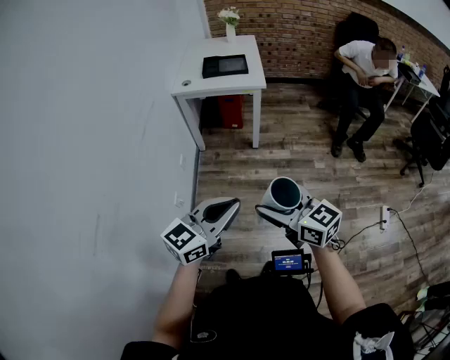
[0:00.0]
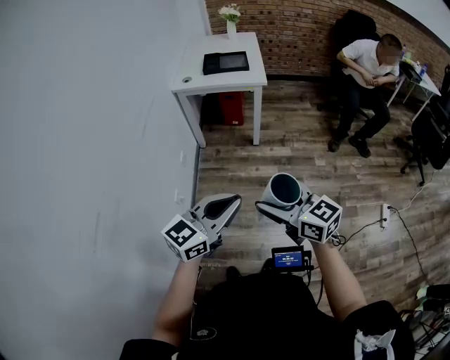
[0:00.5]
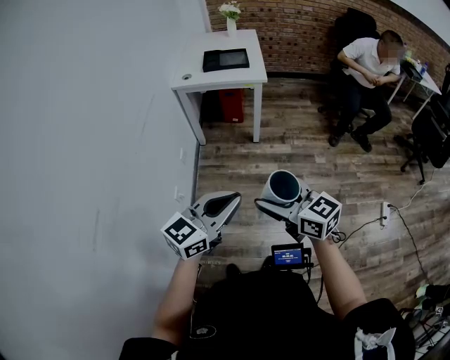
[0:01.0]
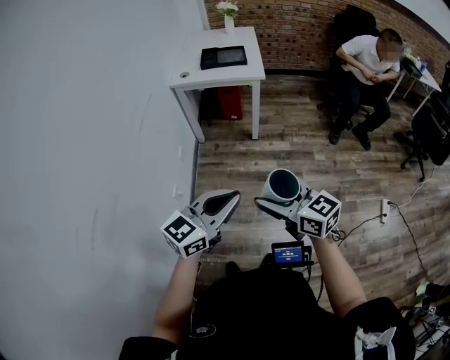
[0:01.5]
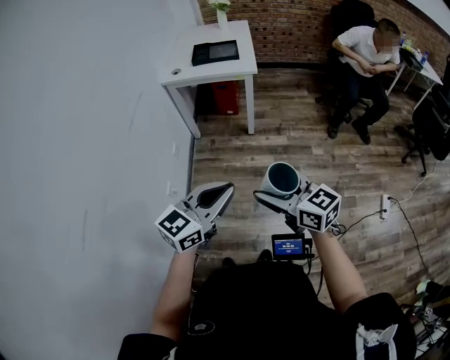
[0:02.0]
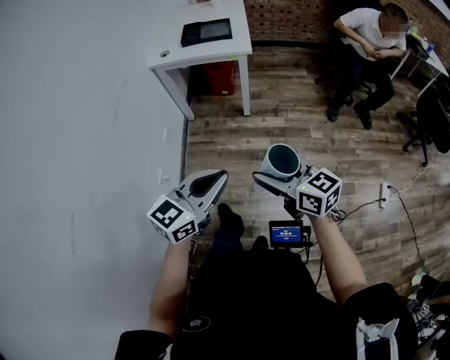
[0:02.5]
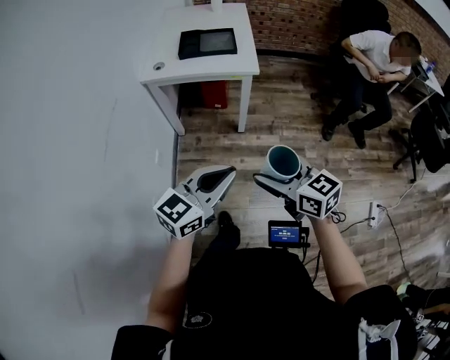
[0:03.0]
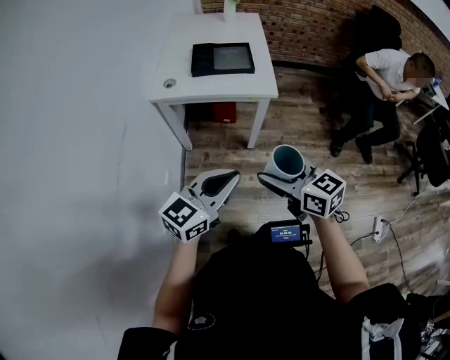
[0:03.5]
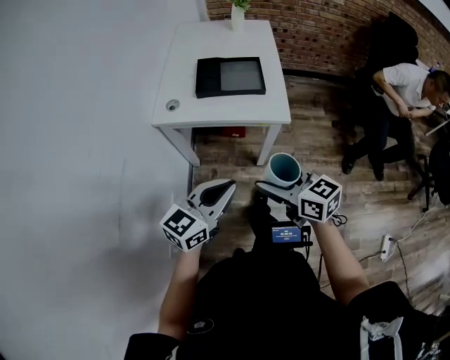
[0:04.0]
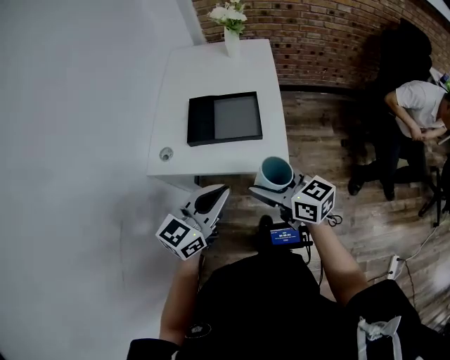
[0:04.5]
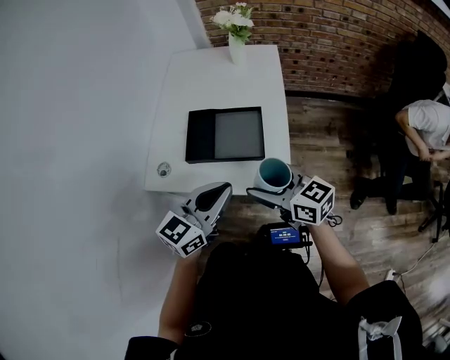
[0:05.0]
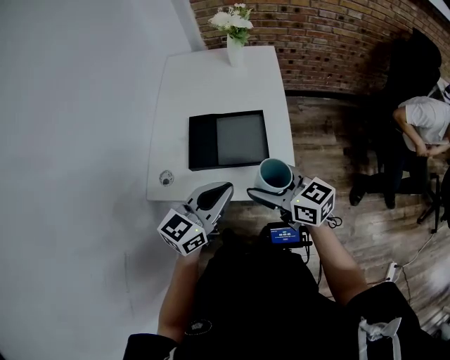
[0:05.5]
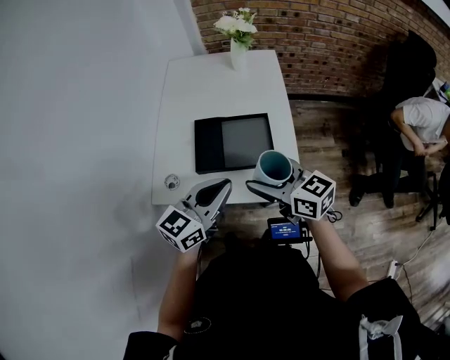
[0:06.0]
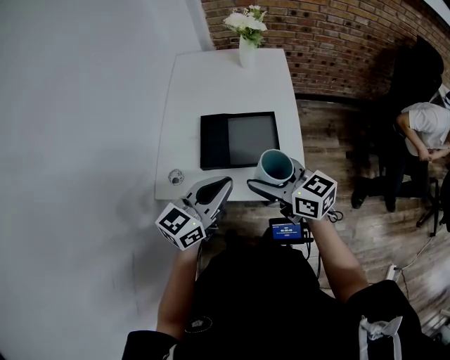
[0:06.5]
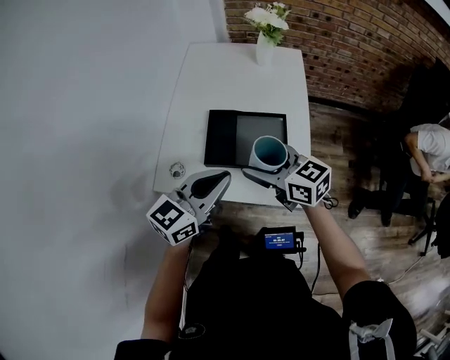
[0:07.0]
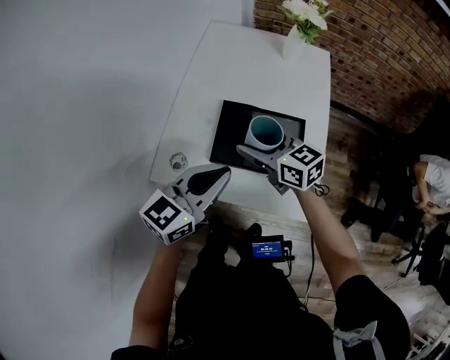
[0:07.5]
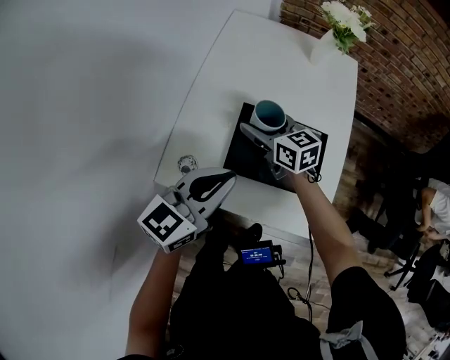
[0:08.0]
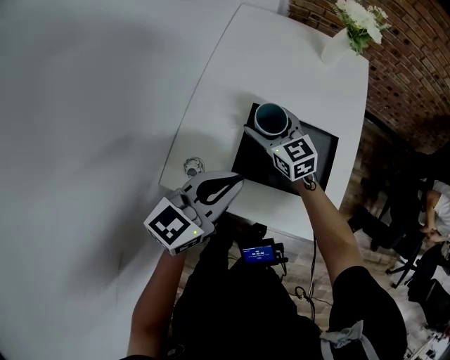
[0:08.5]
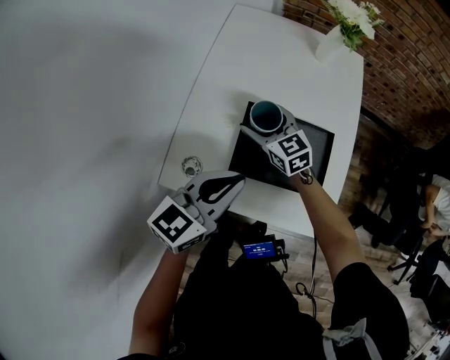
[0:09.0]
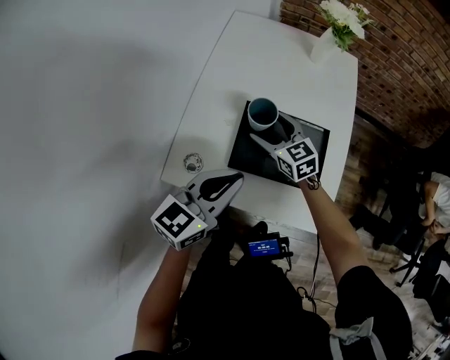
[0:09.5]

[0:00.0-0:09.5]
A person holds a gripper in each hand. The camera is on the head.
0:00.0 to 0:02.0: The right gripper shifts by approximately 5 cm.
0:02.0 to 0:04.0: The pair of grippers is taken forward, roughly 50 cm.
0:04.0 to 0:05.5: The grippers both shift forward by approximately 30 cm.
0:05.5 to 0:07.5: The right gripper heads forward and to the left, covering approximately 20 cm. The left gripper is displaced to the left and forward by roughly 10 cm.
0:07.5 to 0:09.5: The left gripper shifts by approximately 5 cm, while the right gripper moves downward and forward, roughly 15 cm.

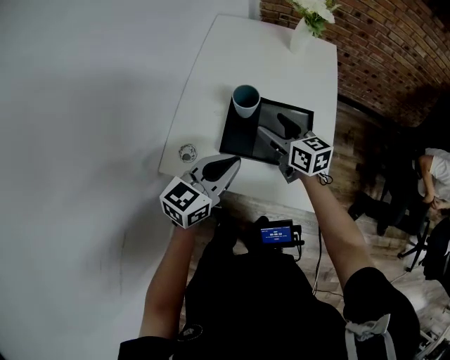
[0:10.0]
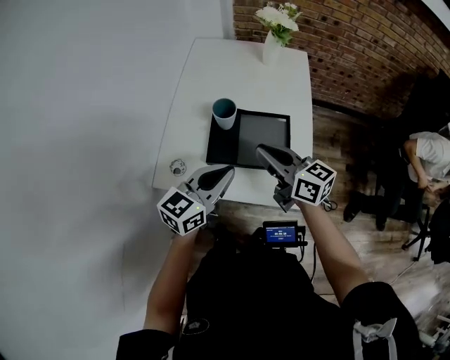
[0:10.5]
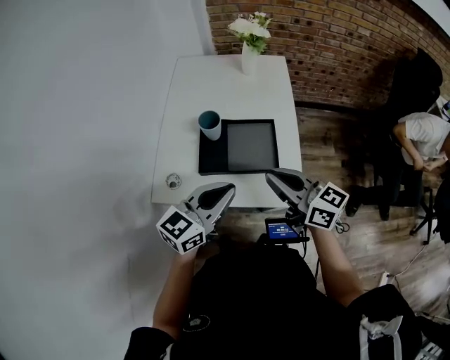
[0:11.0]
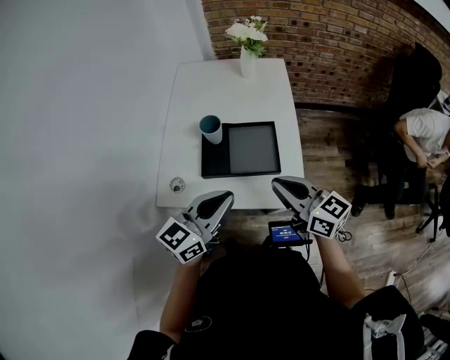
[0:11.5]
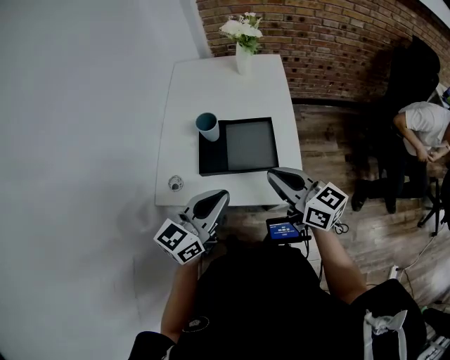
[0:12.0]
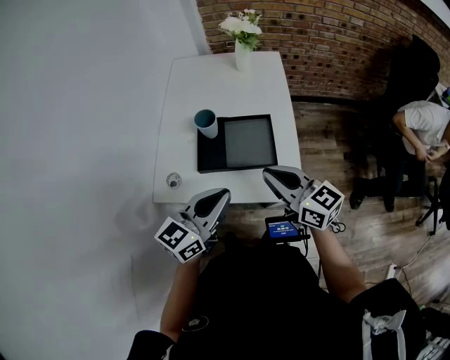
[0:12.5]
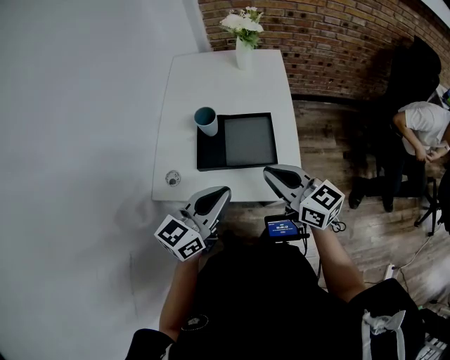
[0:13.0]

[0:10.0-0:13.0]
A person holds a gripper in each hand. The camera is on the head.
0:10.0 to 0:11.5: The right gripper goes some 25 cm backward, upward and to the right, and closes. Meanwhile the left gripper heads backward, upward and to the right, covering roughly 10 cm.
0:11.5 to 0:13.0: The grippers make only small movements.

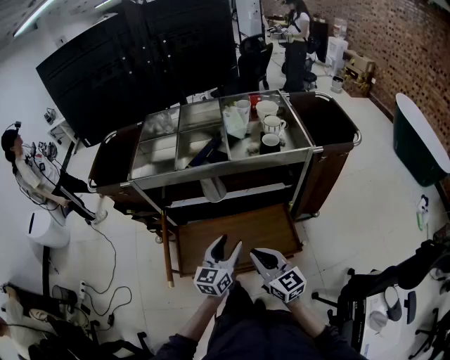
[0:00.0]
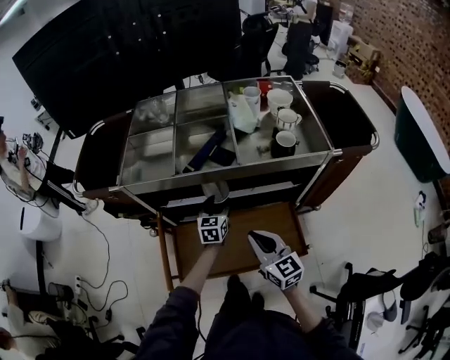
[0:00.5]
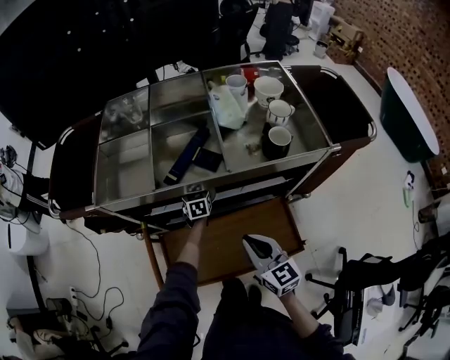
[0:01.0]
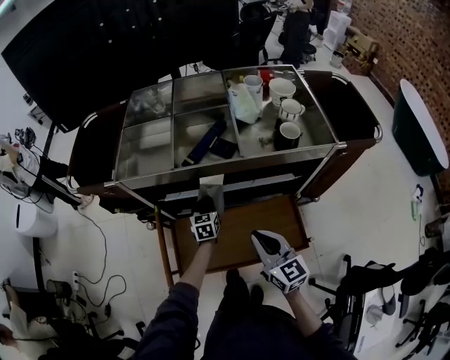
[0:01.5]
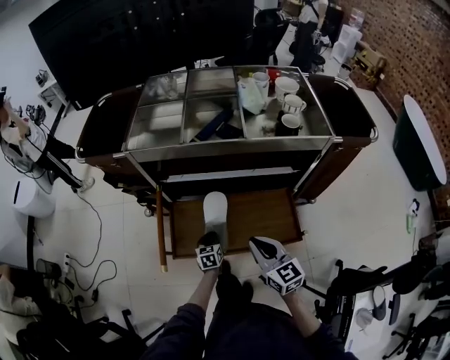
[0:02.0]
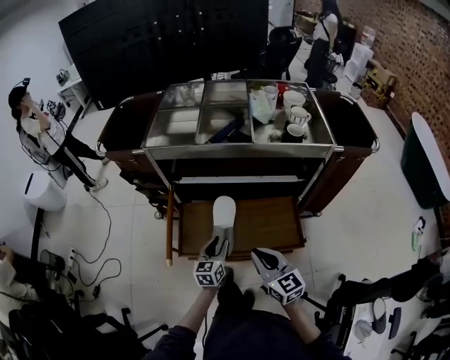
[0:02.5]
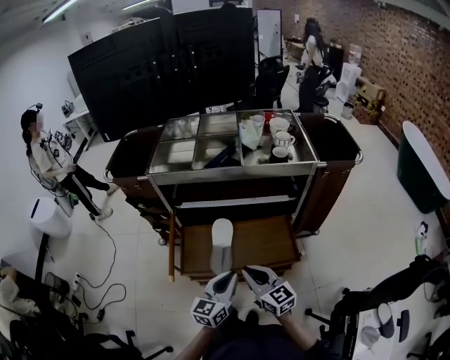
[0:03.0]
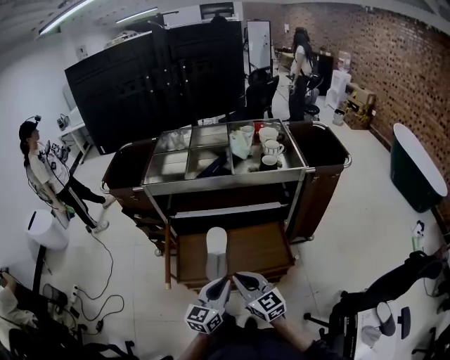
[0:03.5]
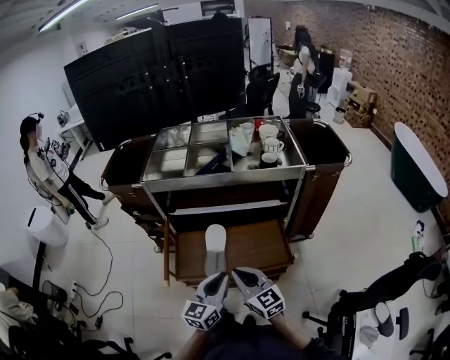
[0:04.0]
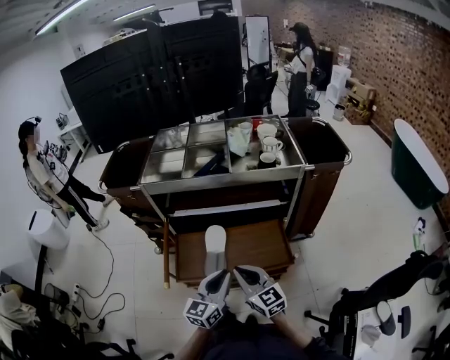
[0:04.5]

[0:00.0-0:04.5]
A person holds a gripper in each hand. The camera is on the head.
0:00.0 to 0:02.0: The right gripper travels forward and back again, about 15 cm each way. The left gripper goes about 25 cm downward, goes forward and returns, some 40 cm each way, tips its fingers downward by some 30 degrees, and closes its fingers.
0:02.0 to 0:04.5: The left gripper heads upward and backward, covering about 35 cm, tips its fingers upward by about 40 degrees, and opens, then closes once more. The right gripper goes some 10 cm backward and upward.

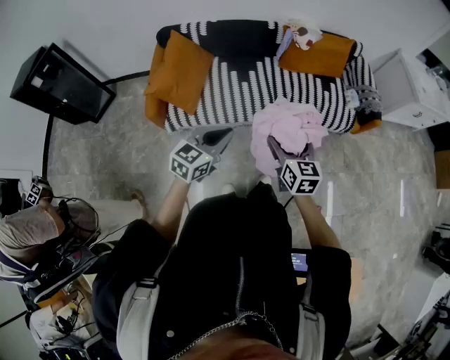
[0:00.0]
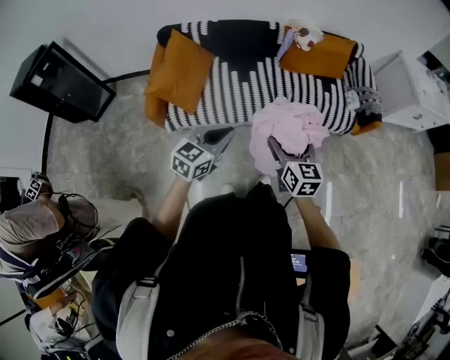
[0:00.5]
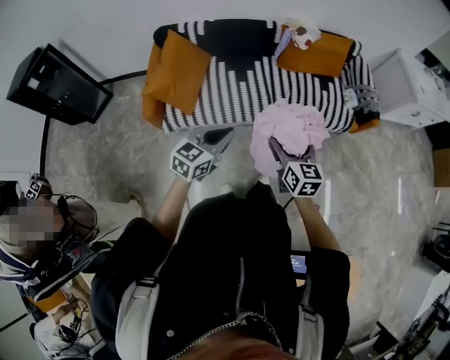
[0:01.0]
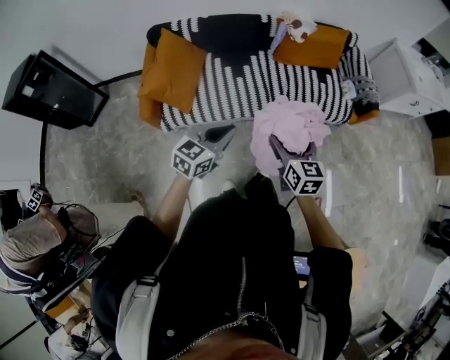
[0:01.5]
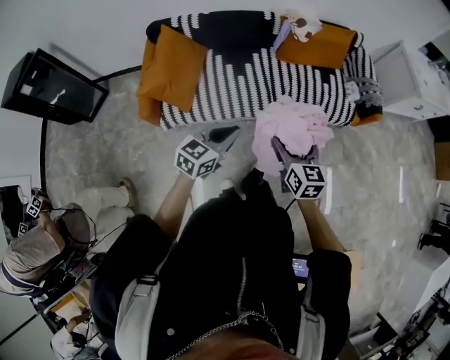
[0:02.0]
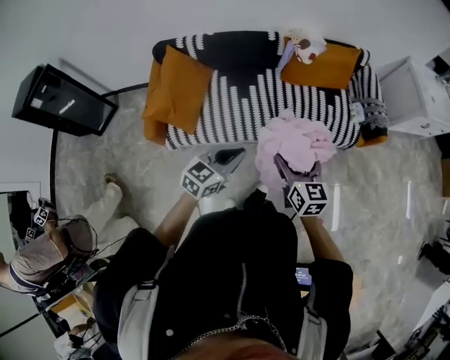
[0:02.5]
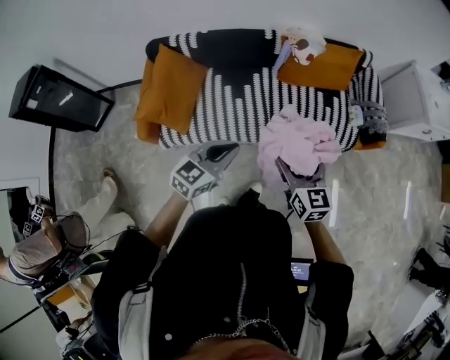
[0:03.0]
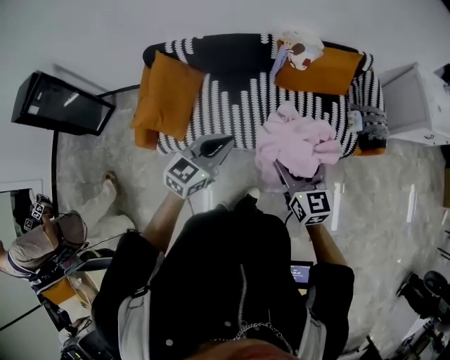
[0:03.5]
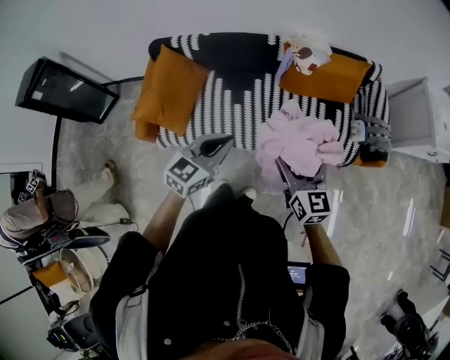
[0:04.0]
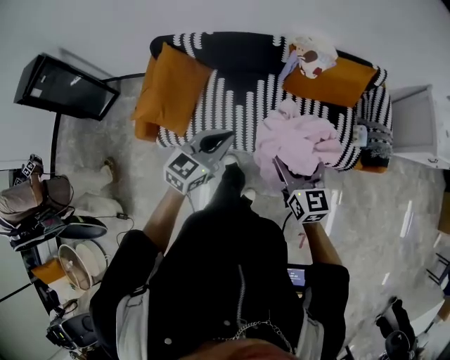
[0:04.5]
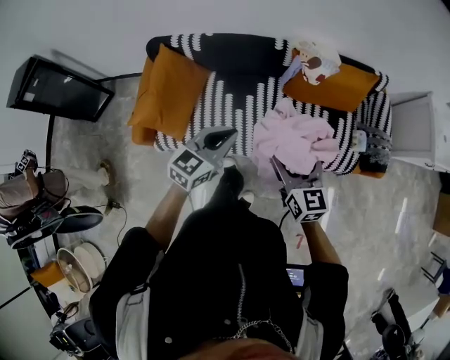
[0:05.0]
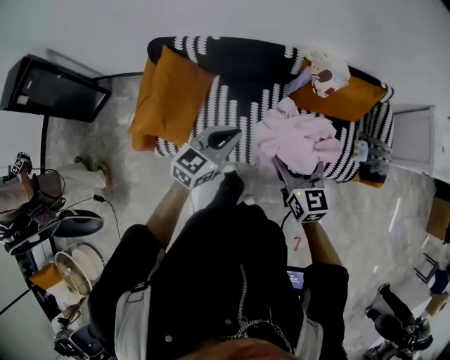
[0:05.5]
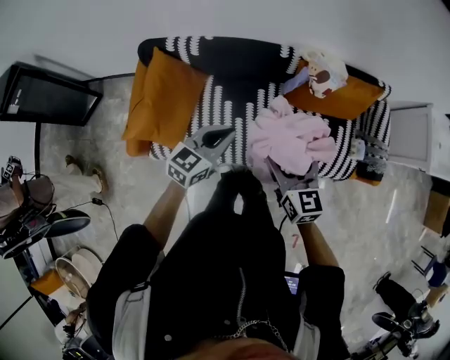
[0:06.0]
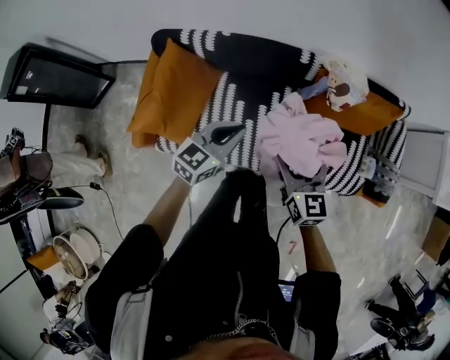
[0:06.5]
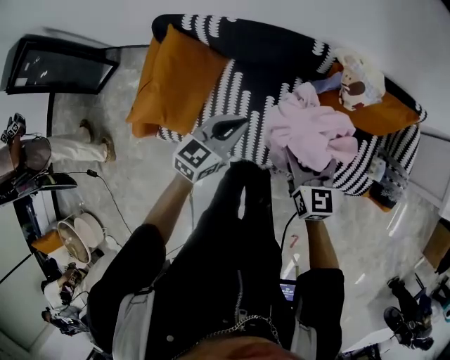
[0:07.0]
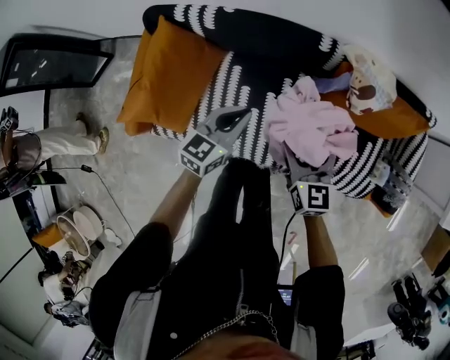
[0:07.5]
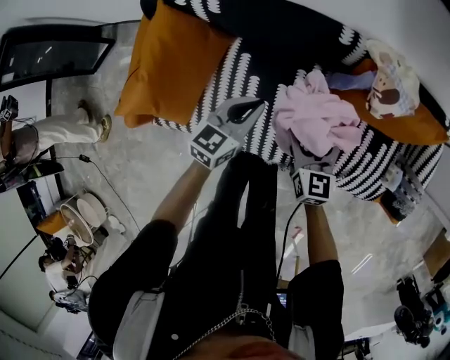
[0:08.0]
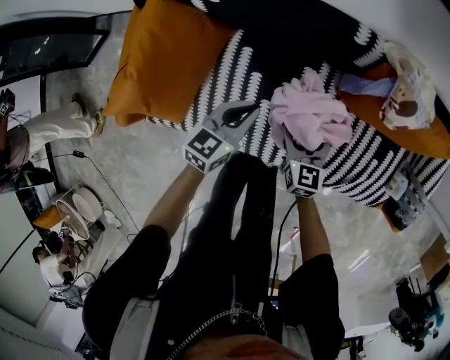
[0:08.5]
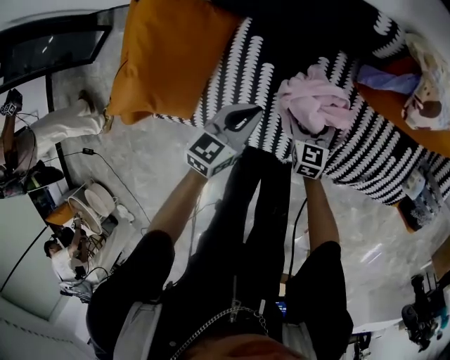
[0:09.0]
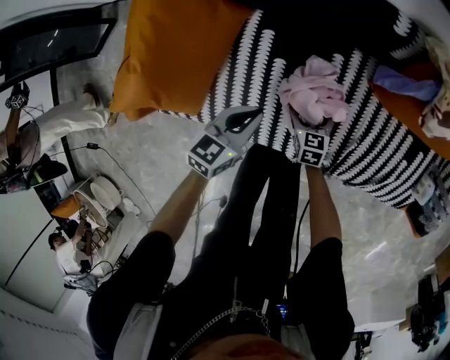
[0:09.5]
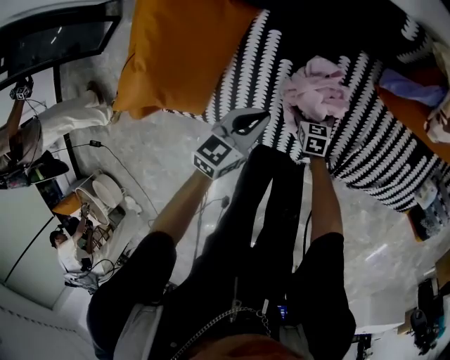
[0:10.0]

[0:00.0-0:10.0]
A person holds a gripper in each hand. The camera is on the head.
0:00.0 to 0:02.0: The left gripper moves forward, approximately 5 cm.
0:02.0 to 0:04.0: Both grippers travel together forward, roughly 20 cm.
0:04.0 to 0:06.0: The left gripper heads forward and to the left, covering approximately 20 cm. Meanwhile the right gripper goes roughly 20 cm to the left and forward.
0:06.0 to 0:08.0: The two grippers go roughly 30 cm downward and forward.
0:08.0 to 0:10.0: The left gripper shifts roughly 15 cm downward and backward; the right gripper shifts roughly 35 cm downward, and angles its fingers downward, by about 30 degrees.
